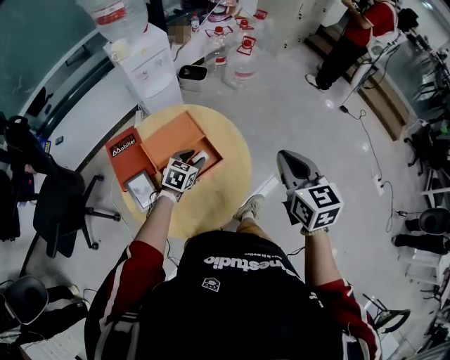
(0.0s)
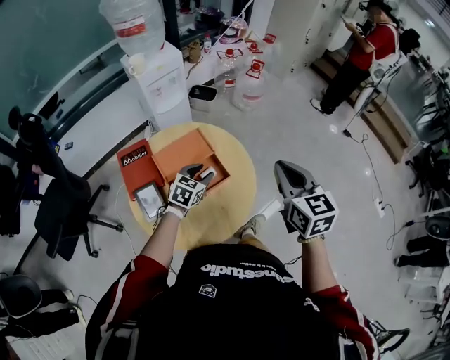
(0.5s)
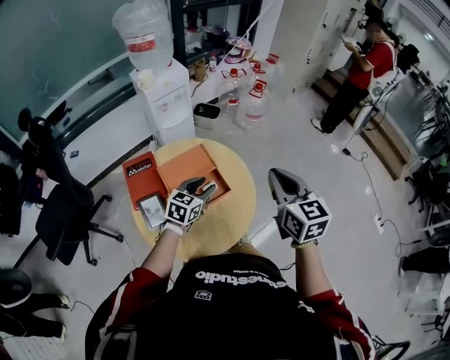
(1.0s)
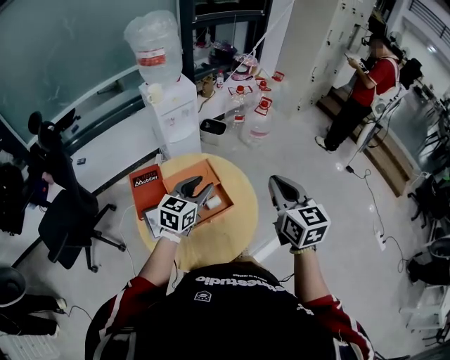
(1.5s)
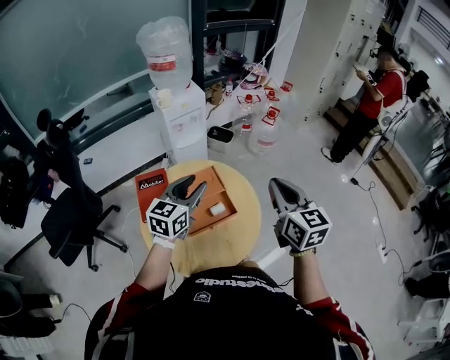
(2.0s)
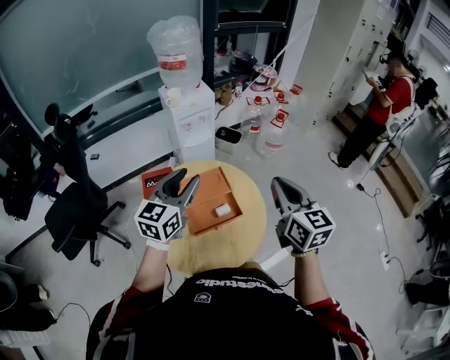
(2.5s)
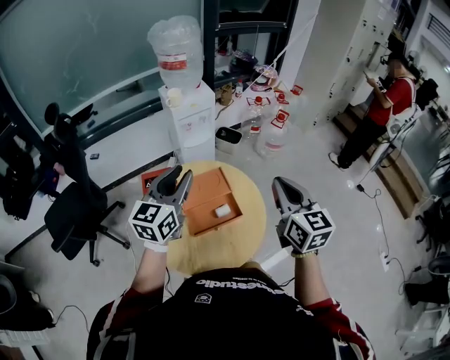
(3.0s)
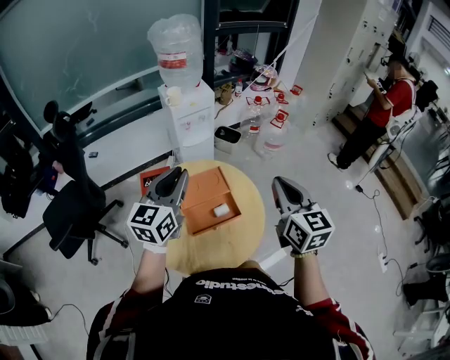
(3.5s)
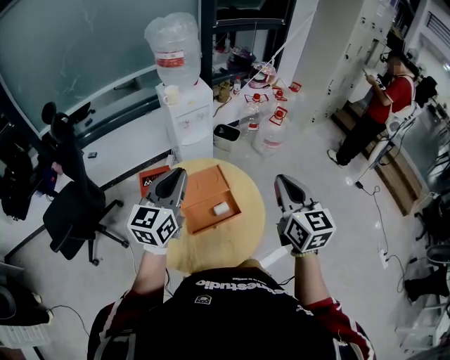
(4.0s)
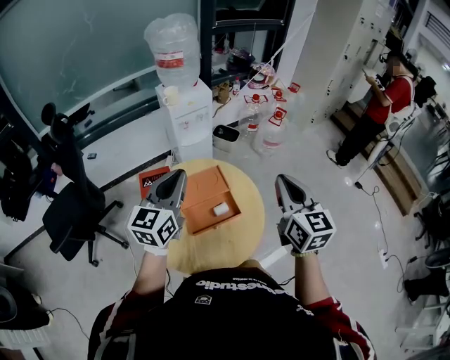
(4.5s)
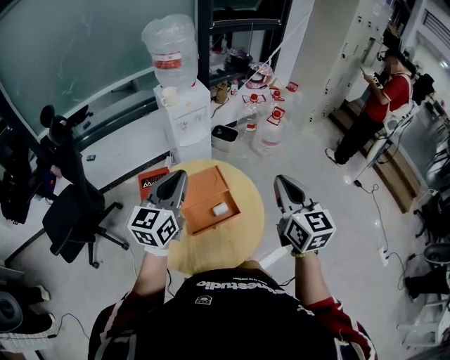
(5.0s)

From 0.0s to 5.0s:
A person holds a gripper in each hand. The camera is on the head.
From 0.0s to 2.5s: The right gripper travels upward and to the left by roughly 15 cm. The left gripper travels upward by some 30 cm, and angles its fingers upward, by roughly 40 degrees.
From 2.5s to 5.0s: The left gripper closes its fingers.

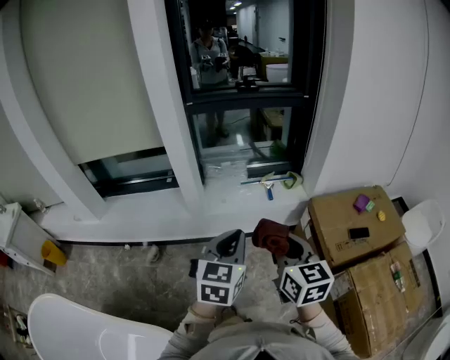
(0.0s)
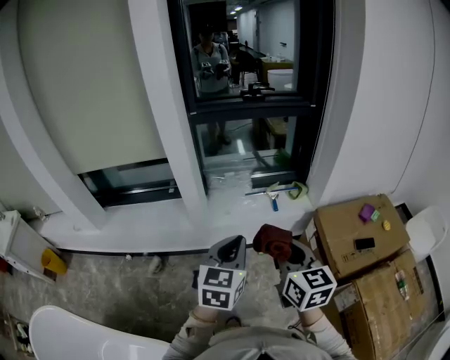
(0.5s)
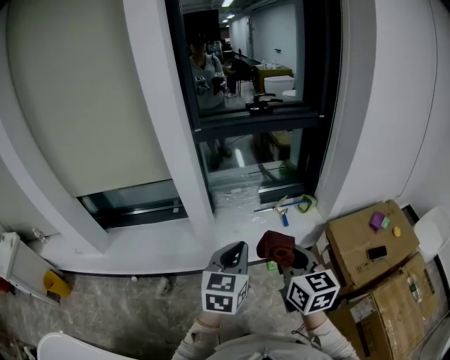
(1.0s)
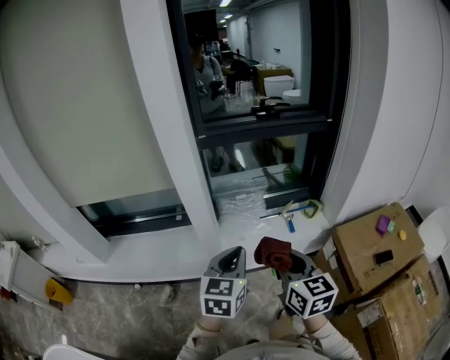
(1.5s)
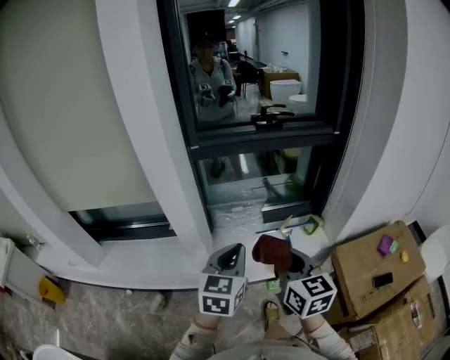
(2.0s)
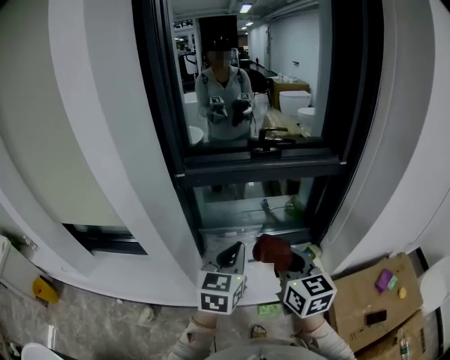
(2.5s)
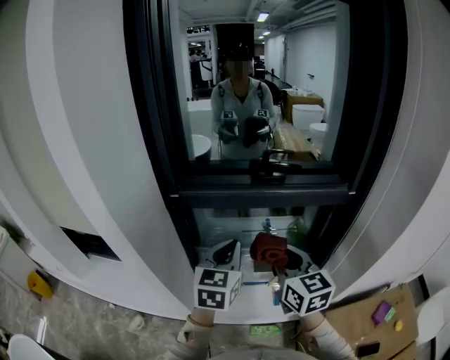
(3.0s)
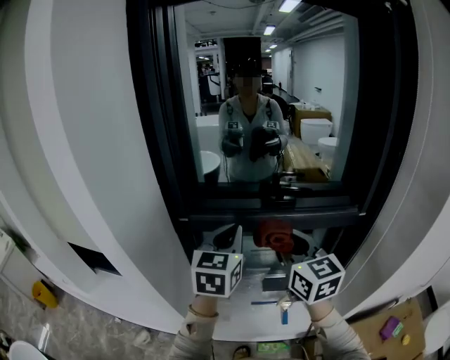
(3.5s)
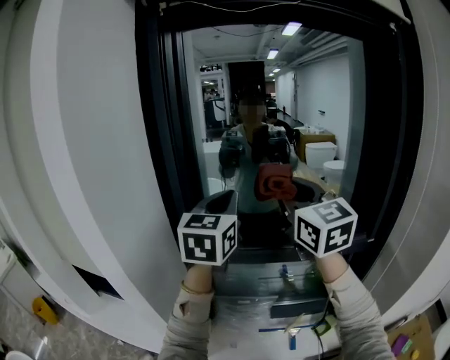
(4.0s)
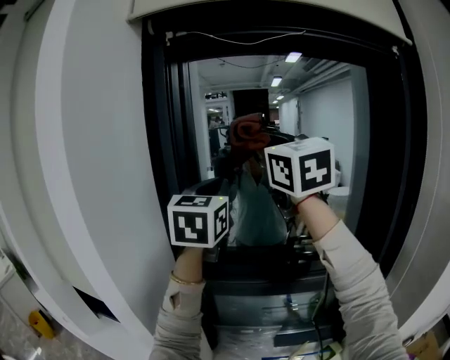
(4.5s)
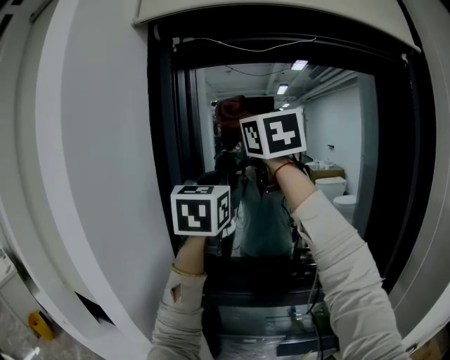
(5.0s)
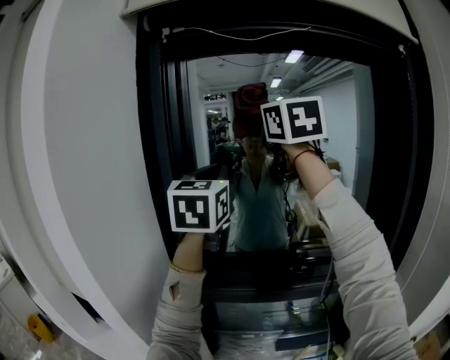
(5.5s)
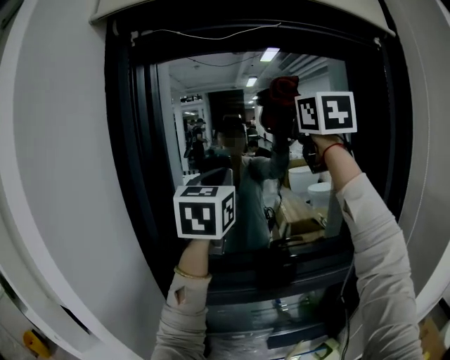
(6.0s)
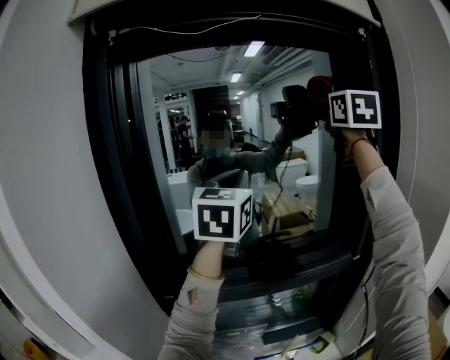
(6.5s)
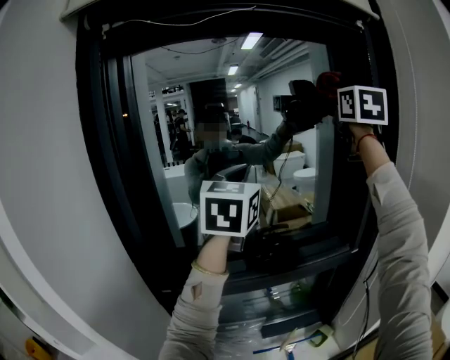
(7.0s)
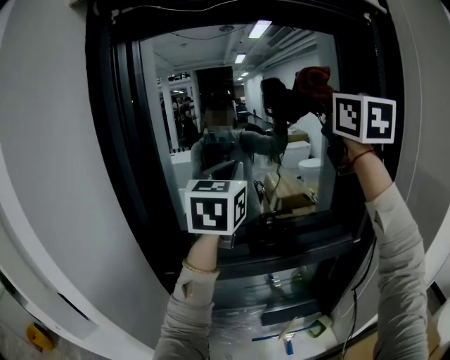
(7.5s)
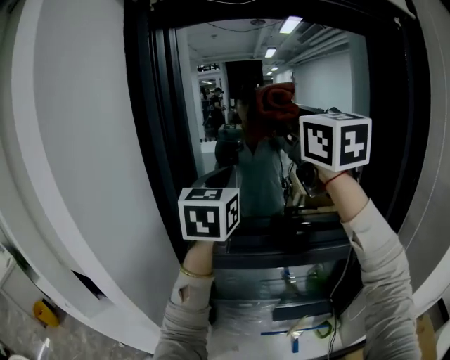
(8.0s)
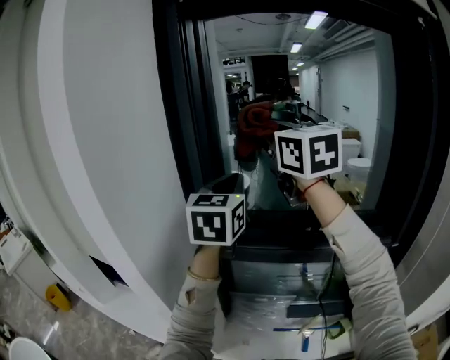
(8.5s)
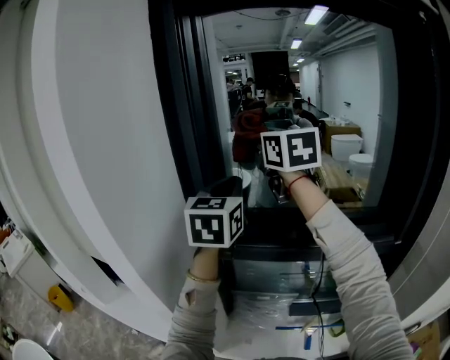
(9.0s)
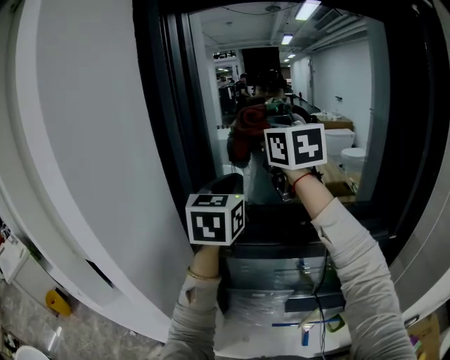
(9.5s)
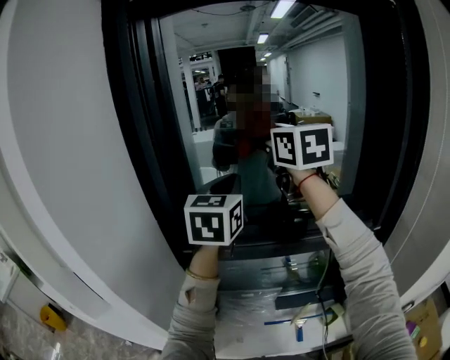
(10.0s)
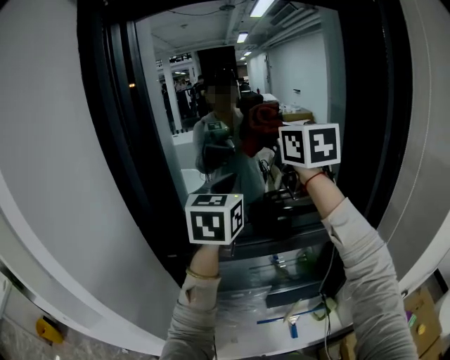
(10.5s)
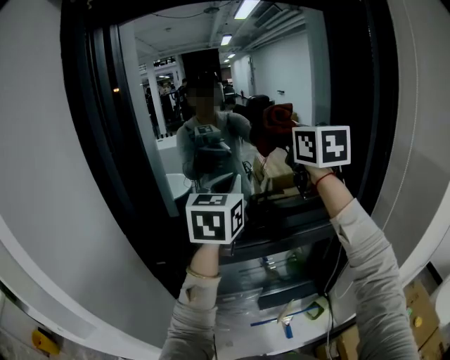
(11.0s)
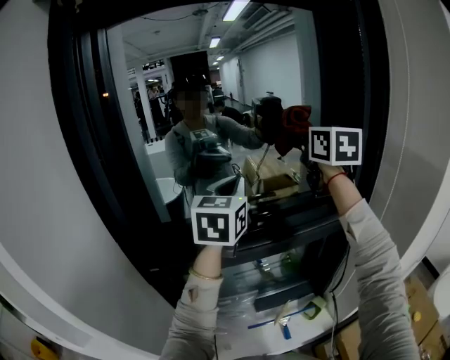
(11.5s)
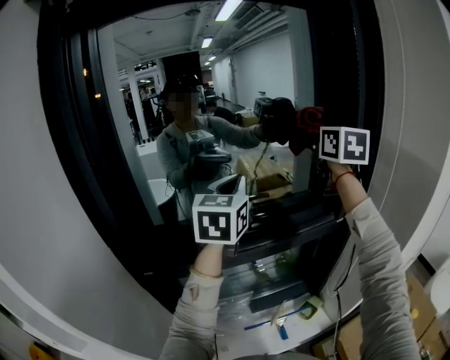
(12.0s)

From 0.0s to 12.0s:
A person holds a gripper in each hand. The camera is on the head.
From 0.0s to 2.0s: Both grippers move forward, roughly 30 cm.
From 2.0s to 4.0s: The two grippers go roughly 50 cm forward and upward. The left gripper swivels about 20 degrees. The right gripper changes its angle by about 30 degrees.
From 4.0s to 6.0s: The left gripper heads upward and forward, covering some 15 cm. Meanwhile the right gripper shifts roughly 25 cm upward and to the right.
From 6.0s to 8.0s: The left gripper is displaced downward by about 10 cm. The right gripper shifts by about 15 cm.
From 8.0s to 10.0s: The right gripper travels downward and forward by about 10 cm, and goes to the left and returns, about 10 cm each way. Meanwhile the left gripper heads downward, covering some 5 cm, and reaches some 5 cm to the left, then returns.
From 10.0s to 12.0s: The left gripper is displaced to the right by about 15 cm. The right gripper shifts roughly 30 cm to the right, and rotates some 30 degrees.

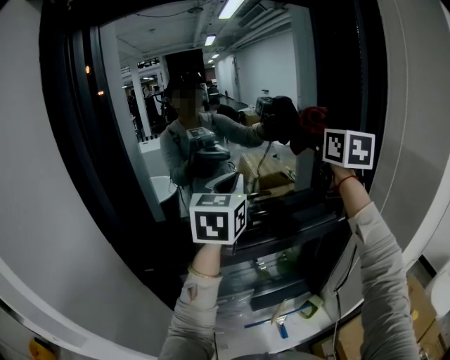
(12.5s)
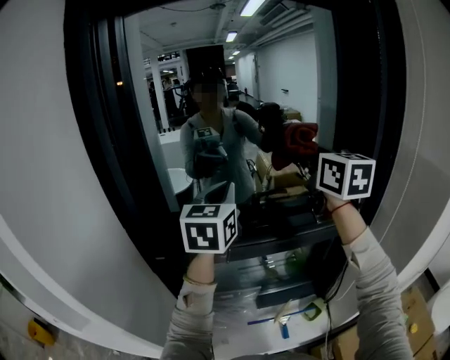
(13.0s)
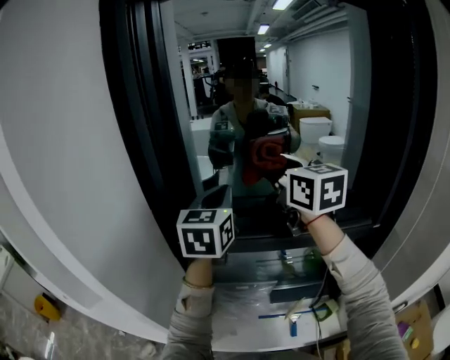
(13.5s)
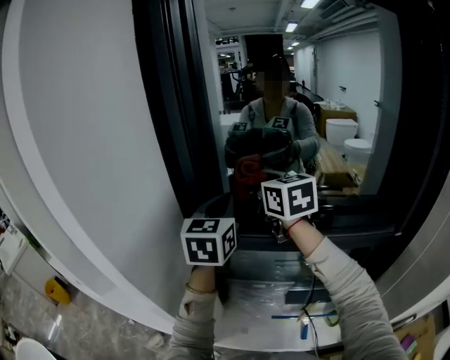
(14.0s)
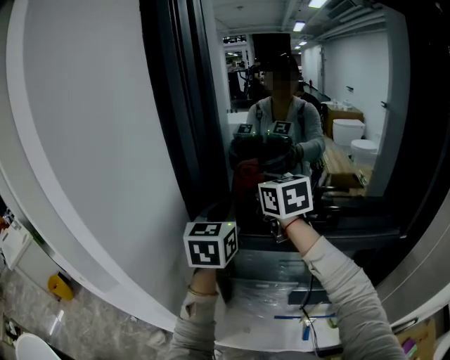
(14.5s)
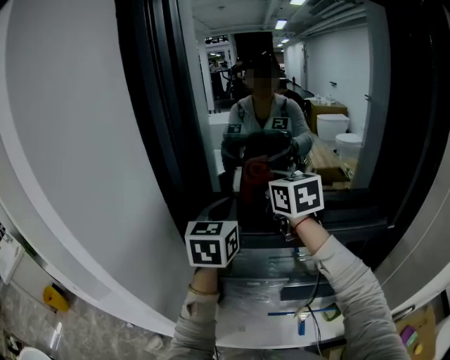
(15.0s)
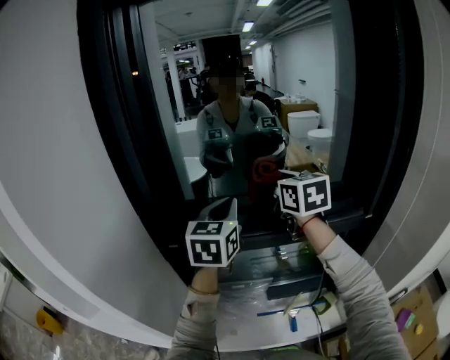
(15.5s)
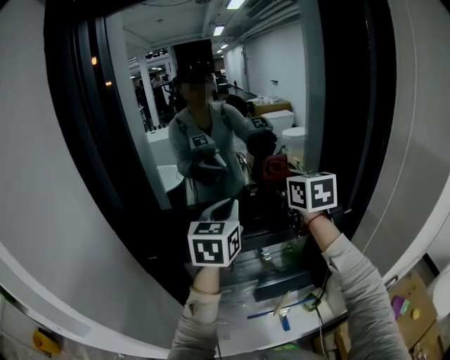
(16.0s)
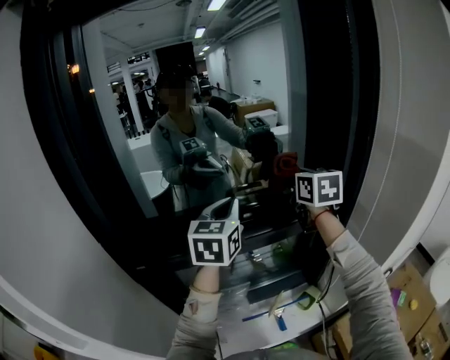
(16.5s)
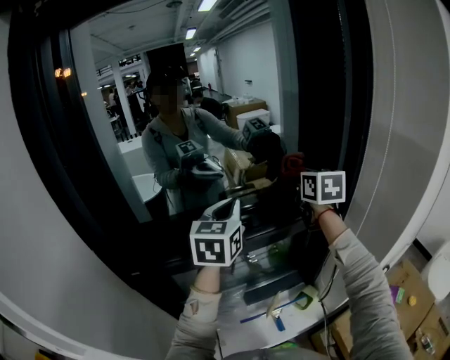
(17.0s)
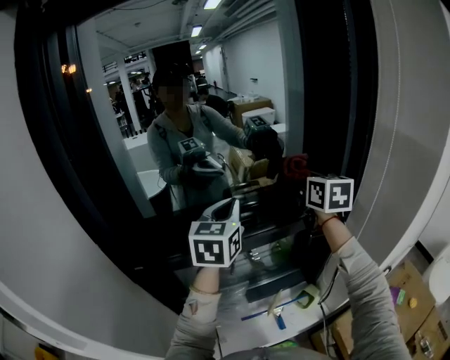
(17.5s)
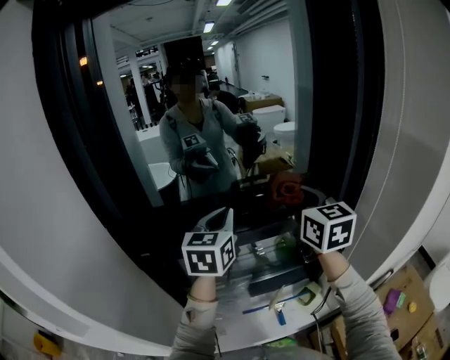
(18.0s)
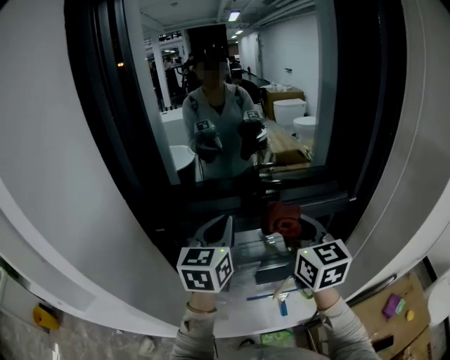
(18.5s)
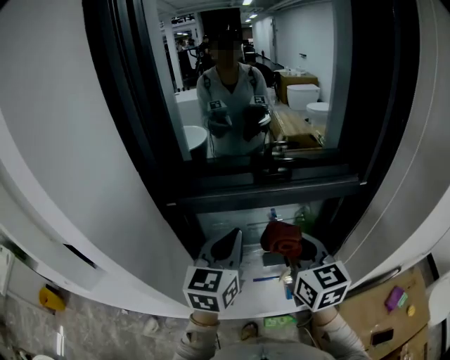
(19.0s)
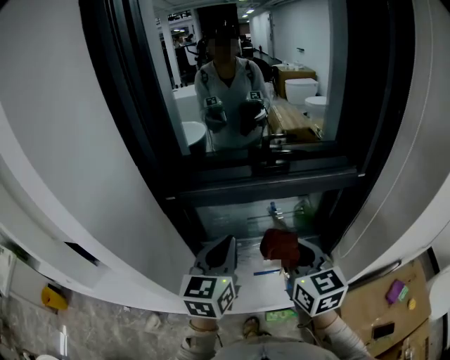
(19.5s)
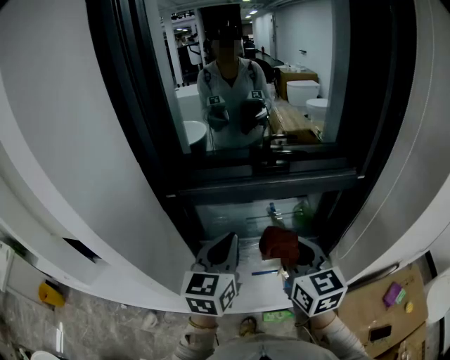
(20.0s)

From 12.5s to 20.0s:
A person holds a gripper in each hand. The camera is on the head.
From 12.5s to 14.5s: The left gripper ends up some 25 cm from where it was, and turns by about 30 degrees. The right gripper moves roughly 40 cm, and rotates roughly 40 degrees.
From 14.5s to 16.5s: The left gripper moves approximately 25 cm, and swivels roughly 30 degrees. Meanwhile the right gripper ends up some 40 cm from where it was, and swivels approximately 40 degrees.
From 16.5s to 18.0s: The left gripper changes place by some 5 cm; the right gripper moves backward, about 10 cm.
From 18.0s to 20.0s: The grippers both shift backward, downward and to the left by about 25 cm.

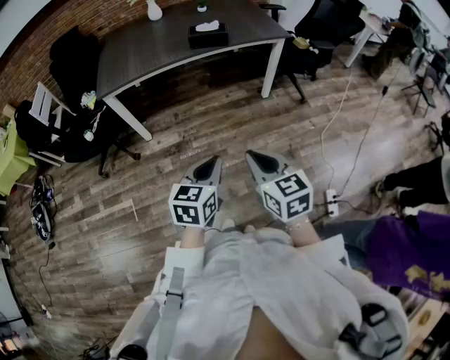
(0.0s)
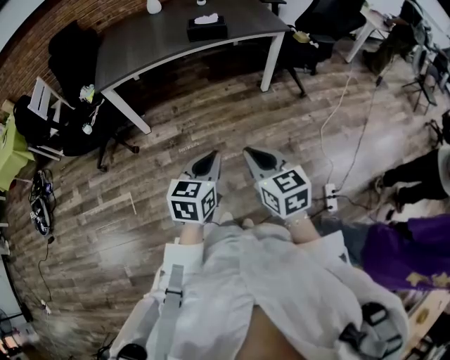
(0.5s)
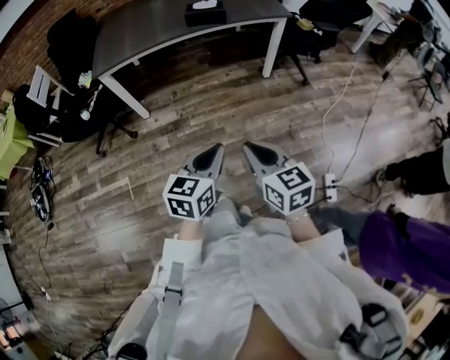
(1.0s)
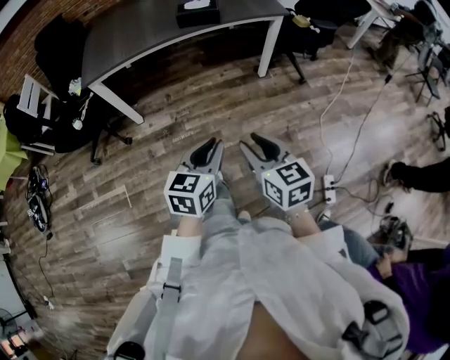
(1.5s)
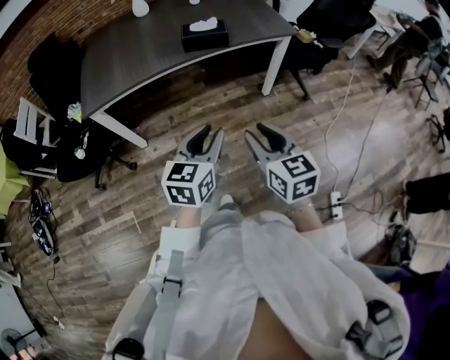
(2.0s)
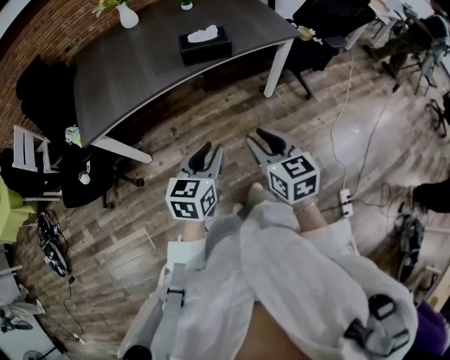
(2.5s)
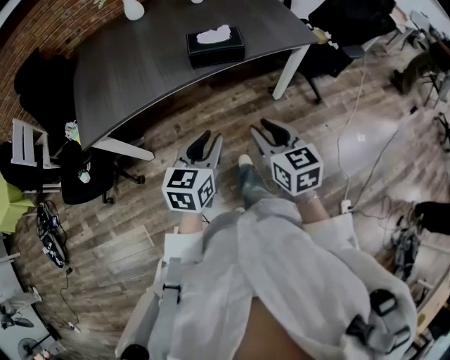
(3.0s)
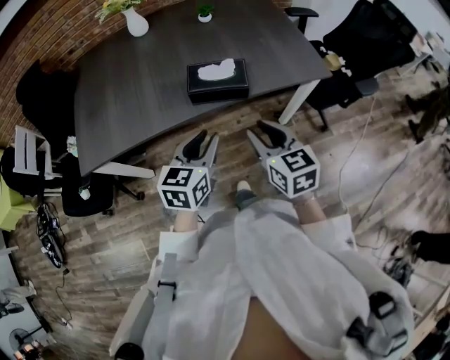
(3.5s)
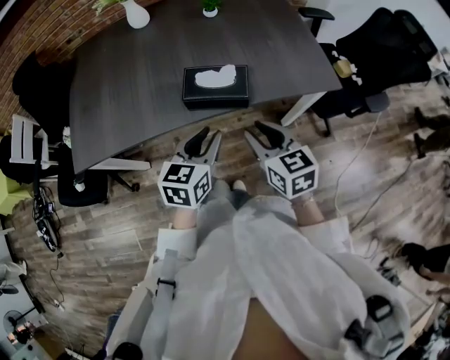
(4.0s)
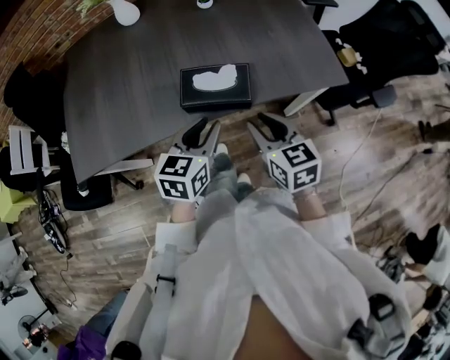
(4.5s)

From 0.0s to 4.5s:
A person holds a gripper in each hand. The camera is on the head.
From 0.0s to 2.0s: The grippers both shift forward by approximately 20 cm. The left gripper opens up. Meanwhile the right gripper opens up.
From 2.0s to 4.5s: The pair of grippers is taken forward, about 40 cm.
